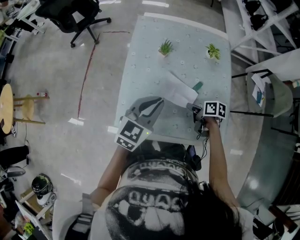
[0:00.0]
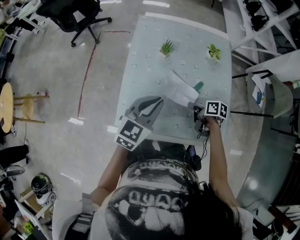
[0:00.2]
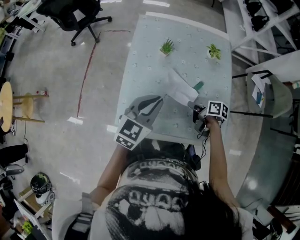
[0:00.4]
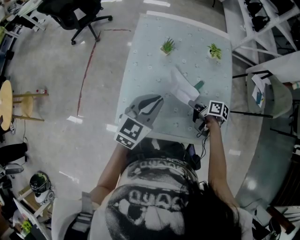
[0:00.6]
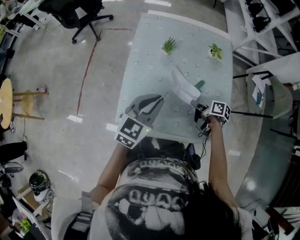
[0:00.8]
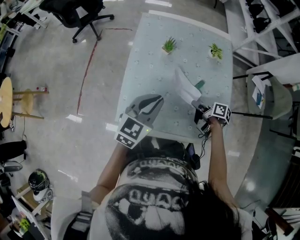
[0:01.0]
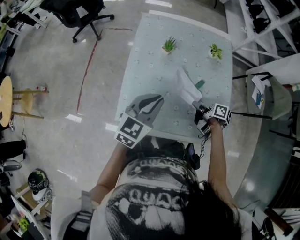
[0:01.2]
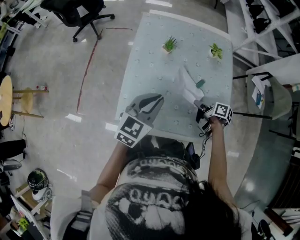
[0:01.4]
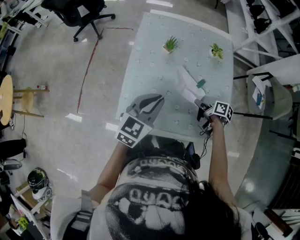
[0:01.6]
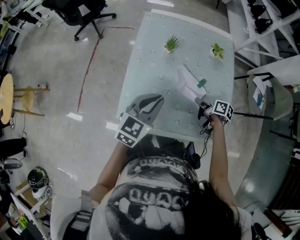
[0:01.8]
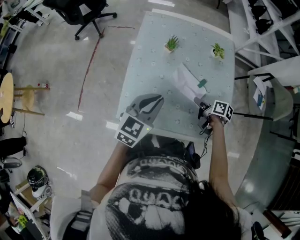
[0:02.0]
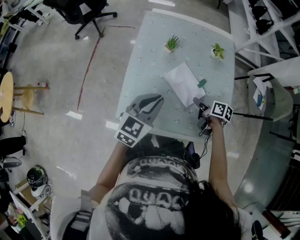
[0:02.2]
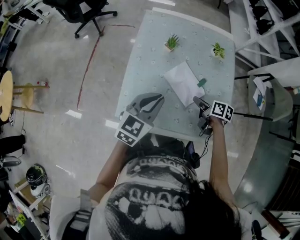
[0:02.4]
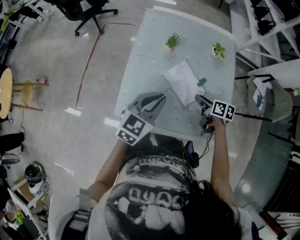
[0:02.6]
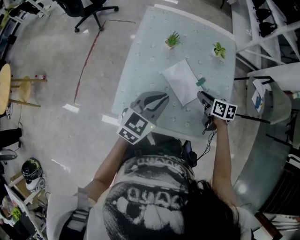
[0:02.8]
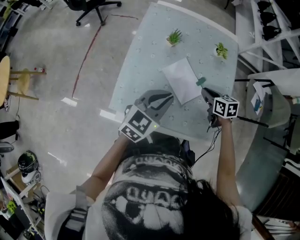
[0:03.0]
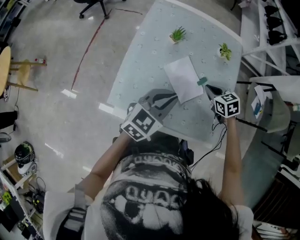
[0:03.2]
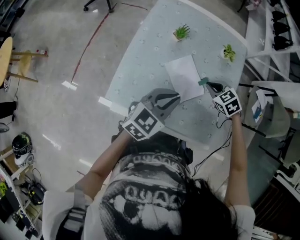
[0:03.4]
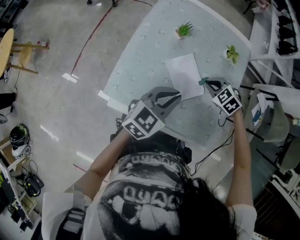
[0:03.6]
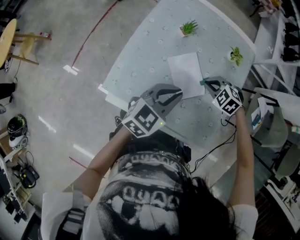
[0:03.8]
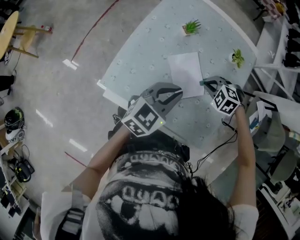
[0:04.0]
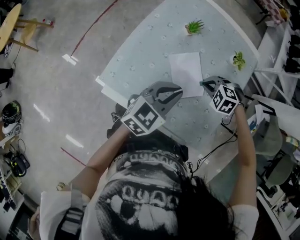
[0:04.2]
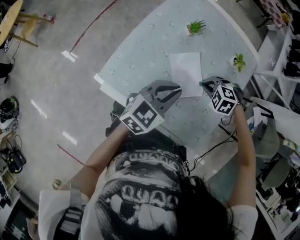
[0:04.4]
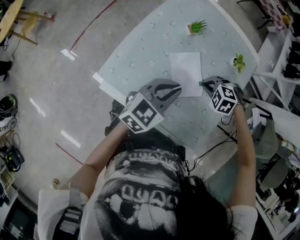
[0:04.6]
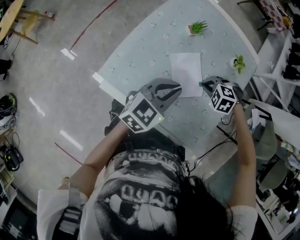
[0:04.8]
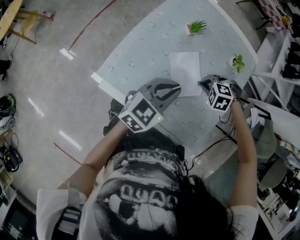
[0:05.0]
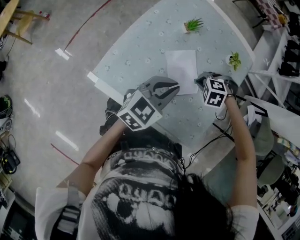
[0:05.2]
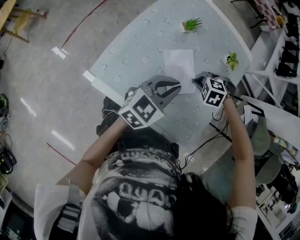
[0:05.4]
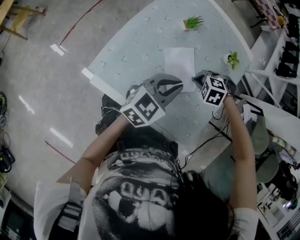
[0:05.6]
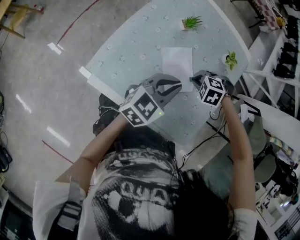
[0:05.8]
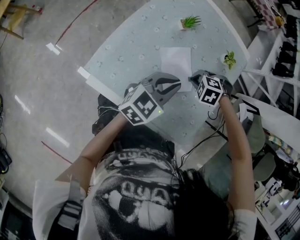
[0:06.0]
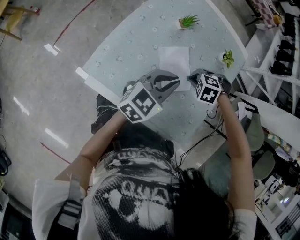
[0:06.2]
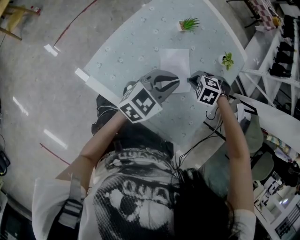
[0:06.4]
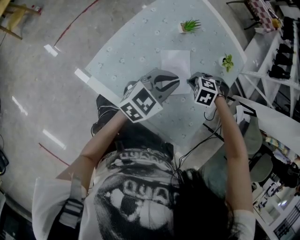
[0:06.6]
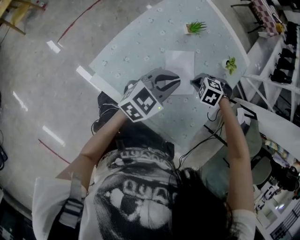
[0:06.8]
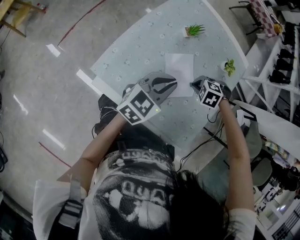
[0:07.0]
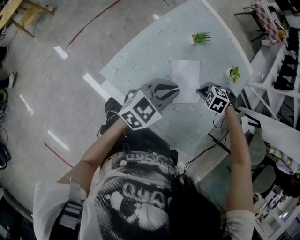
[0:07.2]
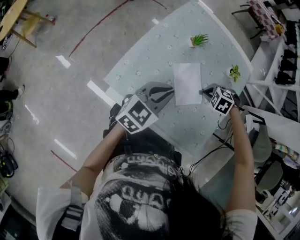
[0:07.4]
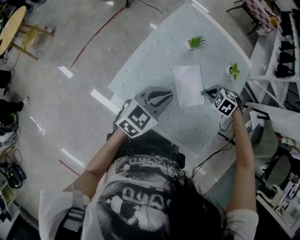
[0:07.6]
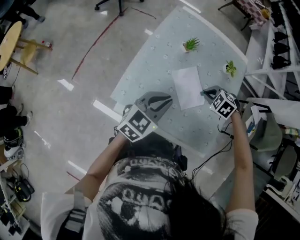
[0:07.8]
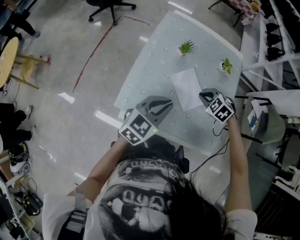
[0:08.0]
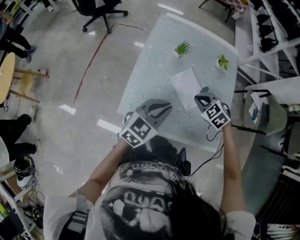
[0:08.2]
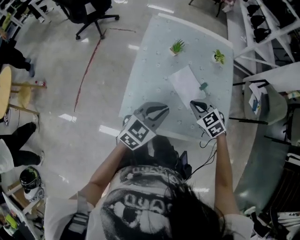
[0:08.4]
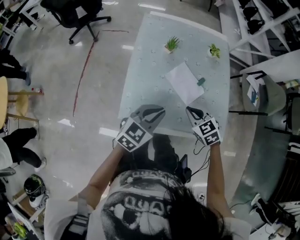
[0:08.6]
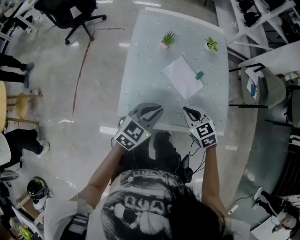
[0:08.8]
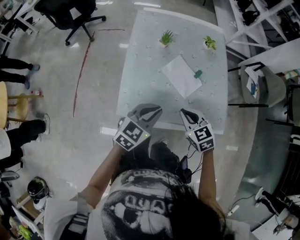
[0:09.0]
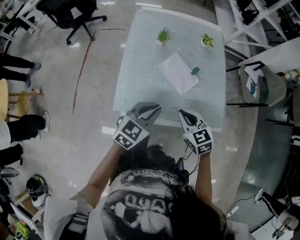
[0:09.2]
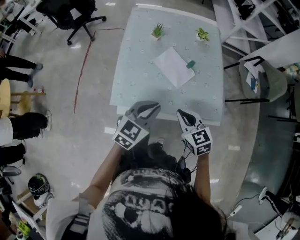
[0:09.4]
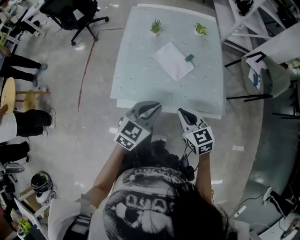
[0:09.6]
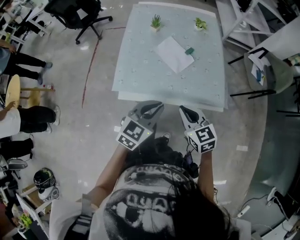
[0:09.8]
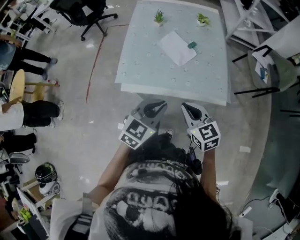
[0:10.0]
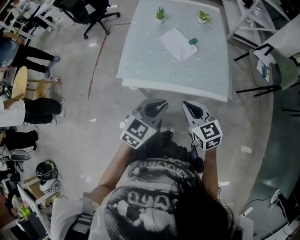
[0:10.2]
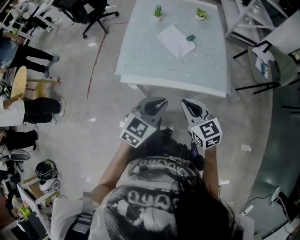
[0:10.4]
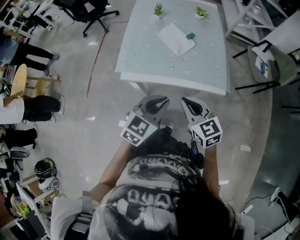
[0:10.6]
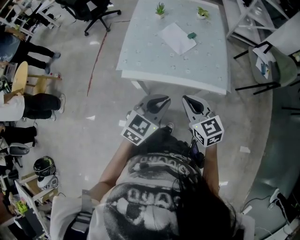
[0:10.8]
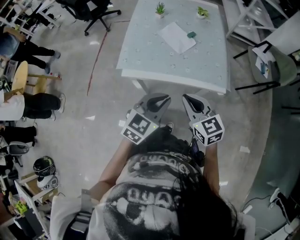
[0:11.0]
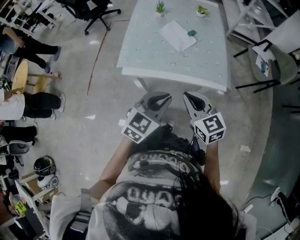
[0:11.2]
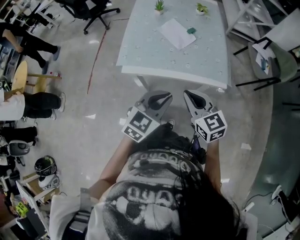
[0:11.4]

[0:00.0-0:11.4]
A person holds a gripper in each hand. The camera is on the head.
0:01.4 to 0:02.8: The right gripper swivels approximately 40 degrees.
0:02.8 to 0:04.2: The left gripper moves some 10 cm, while the right gripper changes place by approximately 5 cm, twists roughly 100 degrees counterclockwise, seen from behind, and closes.
0:04.2 to 0:05.6: The grippers make only small movements.
0:05.6 to 0:07.2: The left gripper changes place by some 5 cm.
0:07.2 to 0:08.6: The right gripper moves roughly 20 cm, and angles its fingers upward, by about 40 degrees. Meanwhile the left gripper changes place by roughly 10 cm, and turns by about 20 degrees.
0:08.6 to 0:10.0: The right gripper moves backward, approximately 20 cm, and rotates some 30 degrees, while the left gripper shifts roughly 20 cm backward and to the right.
0:10.0 to 0:11.4: The grippers both shift backward by about 5 cm.

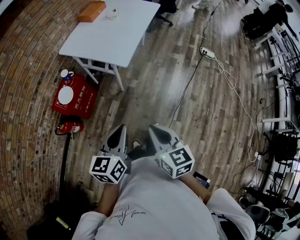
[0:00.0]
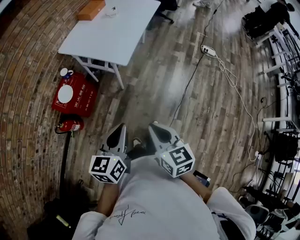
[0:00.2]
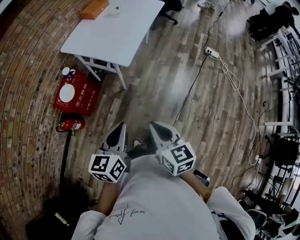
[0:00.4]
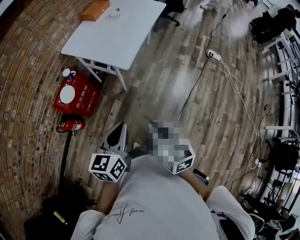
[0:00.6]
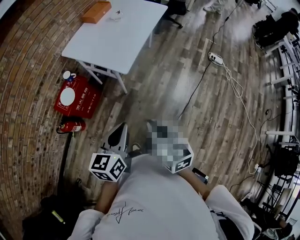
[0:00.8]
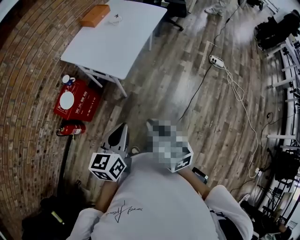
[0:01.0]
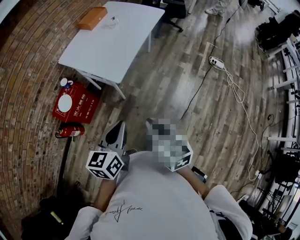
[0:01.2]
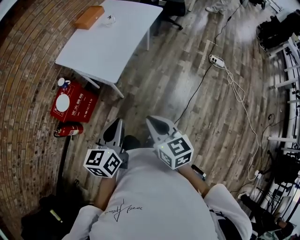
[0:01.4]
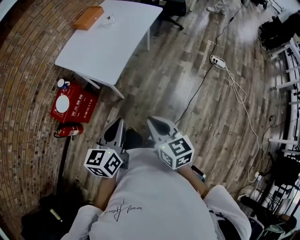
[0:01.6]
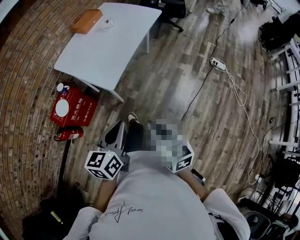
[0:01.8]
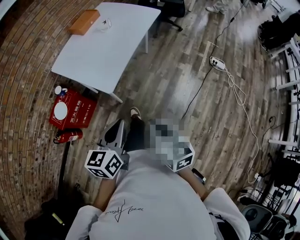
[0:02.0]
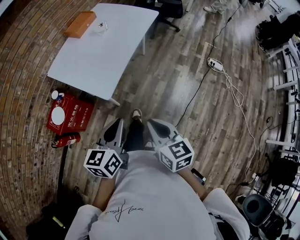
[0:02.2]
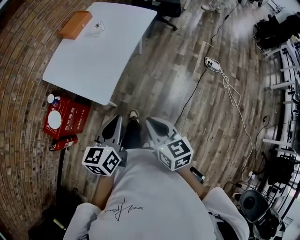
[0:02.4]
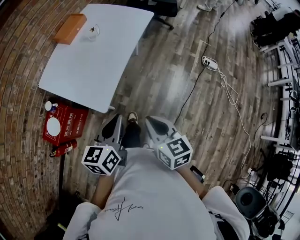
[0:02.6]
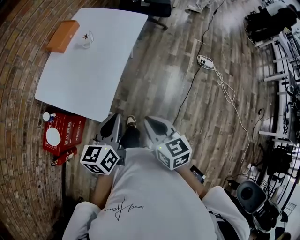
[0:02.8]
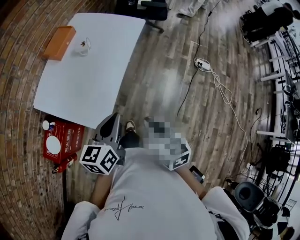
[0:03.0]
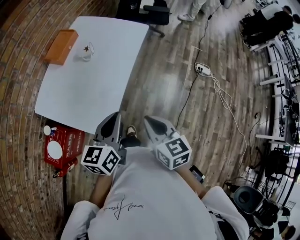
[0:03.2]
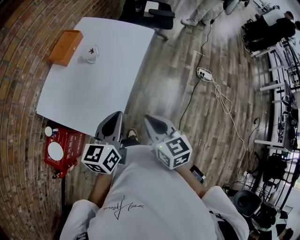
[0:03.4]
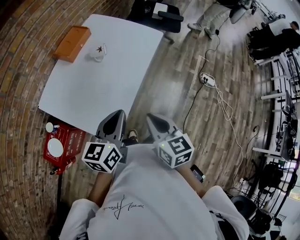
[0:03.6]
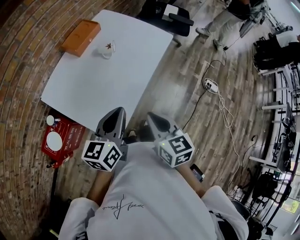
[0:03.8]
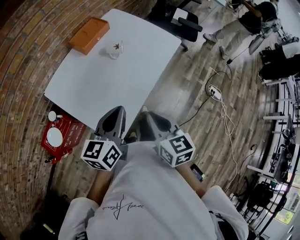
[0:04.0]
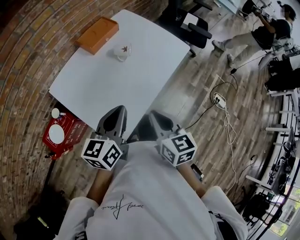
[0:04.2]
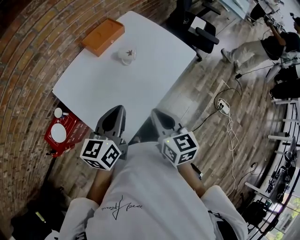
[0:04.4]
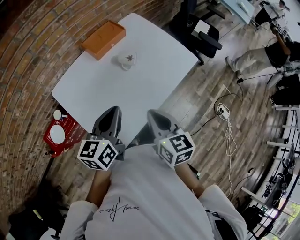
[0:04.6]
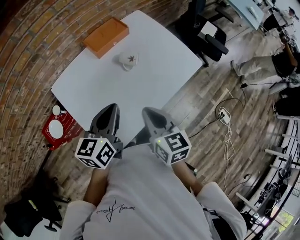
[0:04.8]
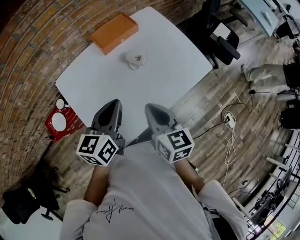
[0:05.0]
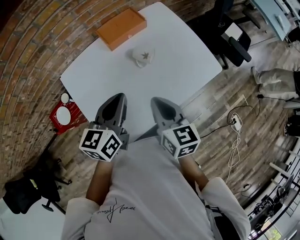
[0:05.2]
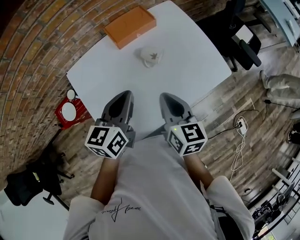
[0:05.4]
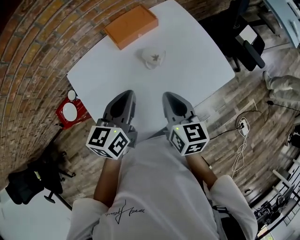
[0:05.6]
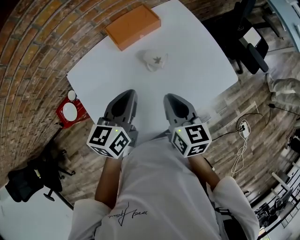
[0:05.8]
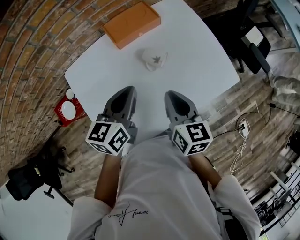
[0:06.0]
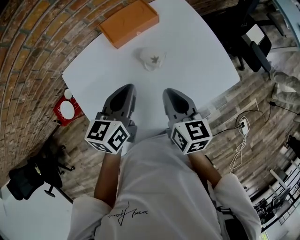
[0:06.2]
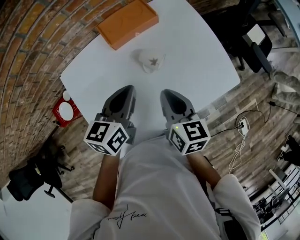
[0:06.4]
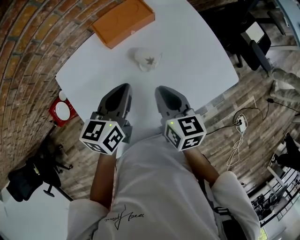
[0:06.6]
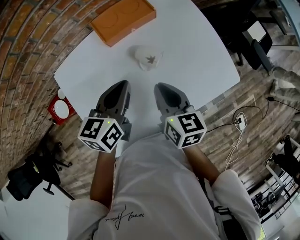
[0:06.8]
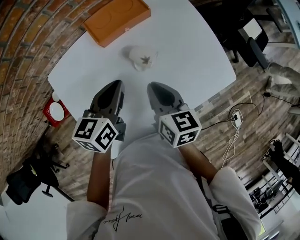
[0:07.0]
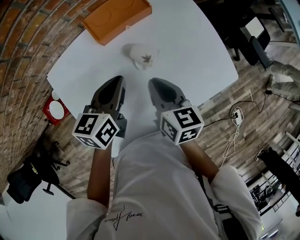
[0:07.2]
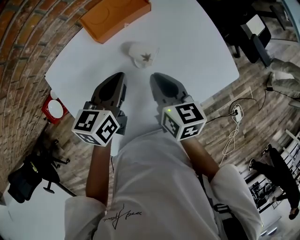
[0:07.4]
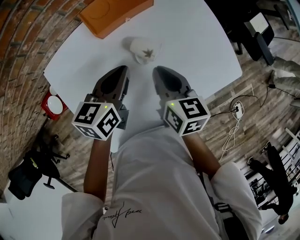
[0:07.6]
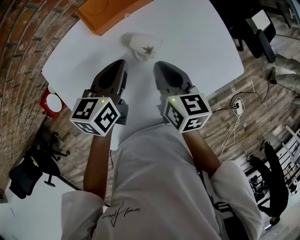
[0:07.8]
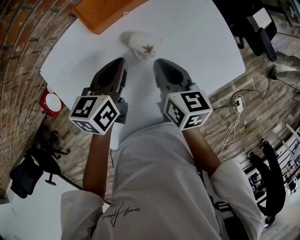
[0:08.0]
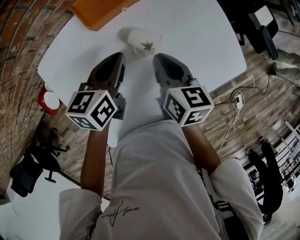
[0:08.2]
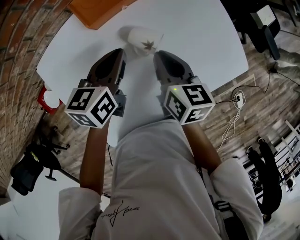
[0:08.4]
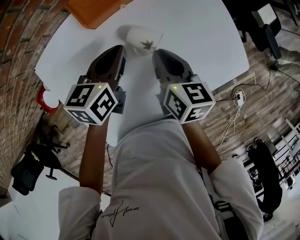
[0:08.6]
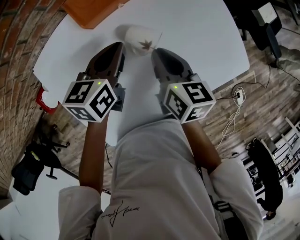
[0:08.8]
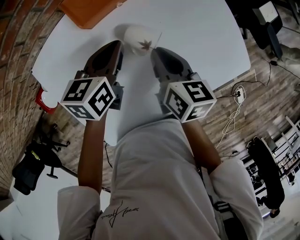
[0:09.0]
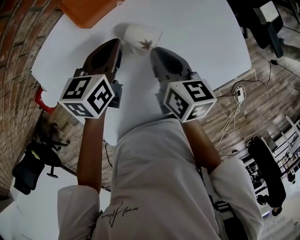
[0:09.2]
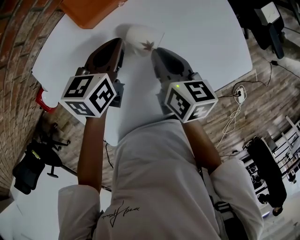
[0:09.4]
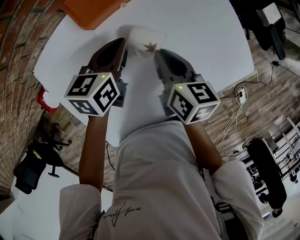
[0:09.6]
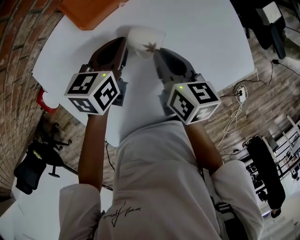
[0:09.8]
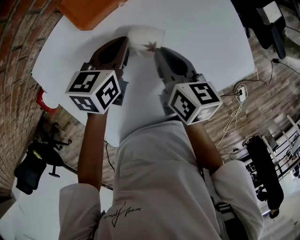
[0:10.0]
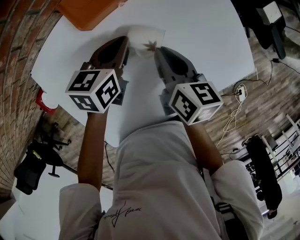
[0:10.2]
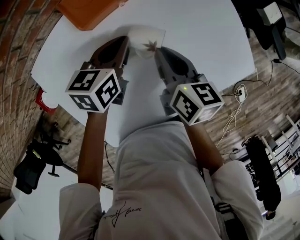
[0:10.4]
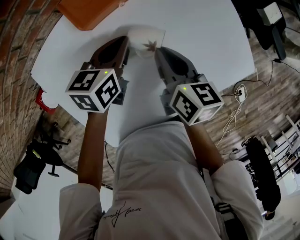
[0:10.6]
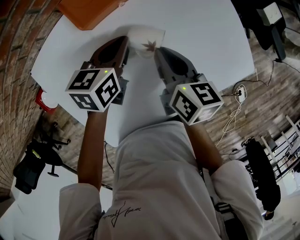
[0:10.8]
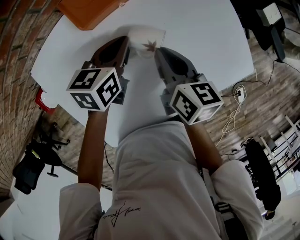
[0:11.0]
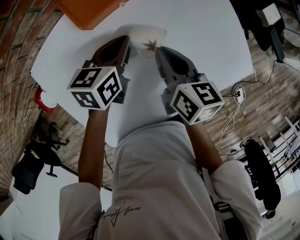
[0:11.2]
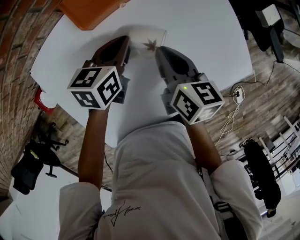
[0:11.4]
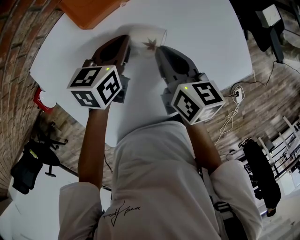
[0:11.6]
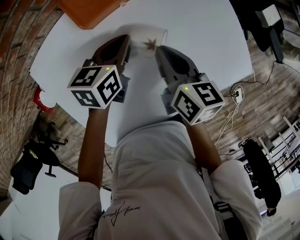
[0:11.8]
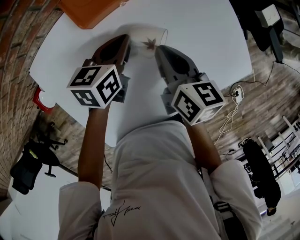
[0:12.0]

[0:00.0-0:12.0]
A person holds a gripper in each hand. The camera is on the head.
0:00.0 to 0:01.6: Both grippers travel together forward and to the right, about 20 cm.
0:01.6 to 0:03.0: The two grippers go some 25 cm forward.
0:03.0 to 0:04.4: Both grippers travel together forward and to the left, roughly 20 cm. The left gripper swivels roughly 20 degrees.
0:04.4 to 0:06.0: The two grippers go approximately 20 cm forward.
0:06.0 to 0:07.6: The grippers both shift forward and downward by roughly 10 cm.
0:07.6 to 0:09.0: The left gripper shifts some 5 cm downward and forward; the right gripper moves roughly 5 cm.
0:09.0 to 0:10.4: The grippers move only a little.
0:10.4 to 0:12.0: Both grippers stay put.

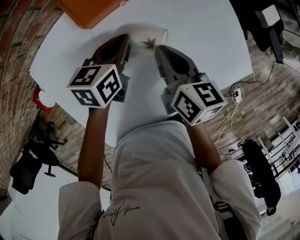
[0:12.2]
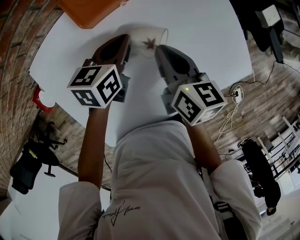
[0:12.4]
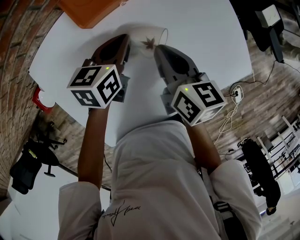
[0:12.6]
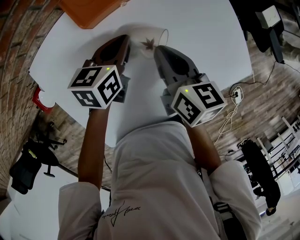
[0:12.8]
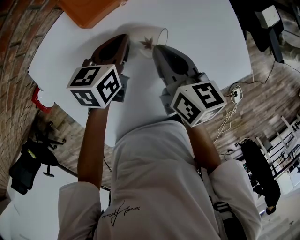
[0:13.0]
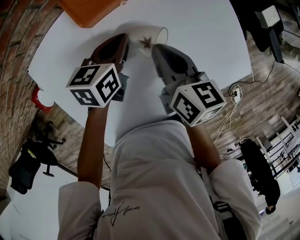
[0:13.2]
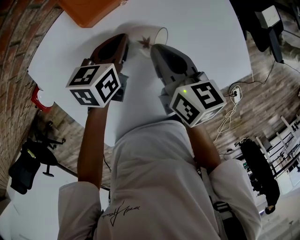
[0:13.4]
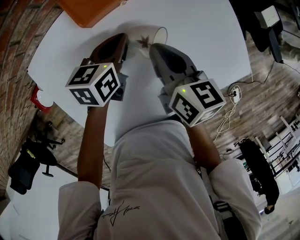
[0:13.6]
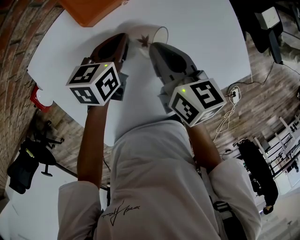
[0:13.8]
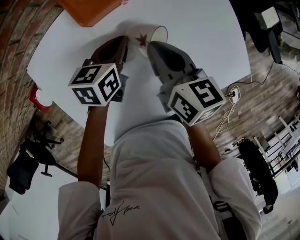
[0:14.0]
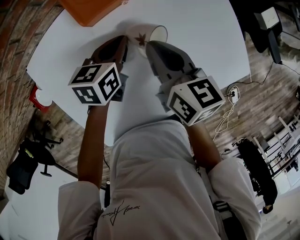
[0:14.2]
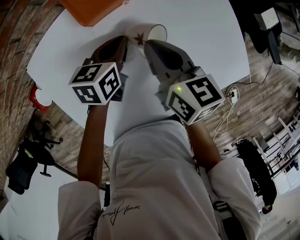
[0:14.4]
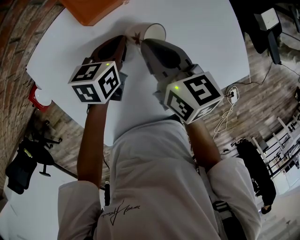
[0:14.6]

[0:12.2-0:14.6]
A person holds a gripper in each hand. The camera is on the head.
0:12.2 to 0:14.6: The grippers stay close to where they were, moving slightly.
